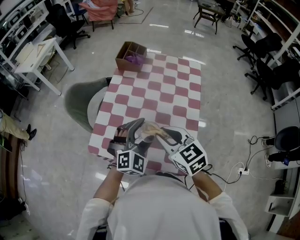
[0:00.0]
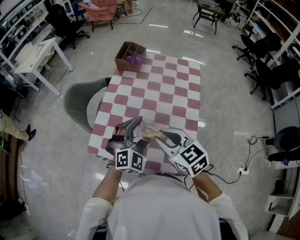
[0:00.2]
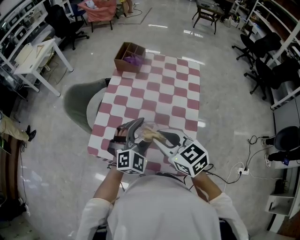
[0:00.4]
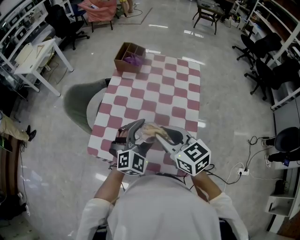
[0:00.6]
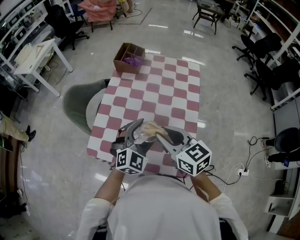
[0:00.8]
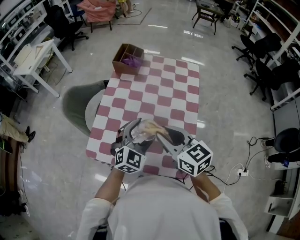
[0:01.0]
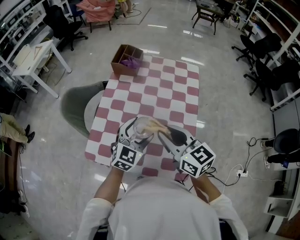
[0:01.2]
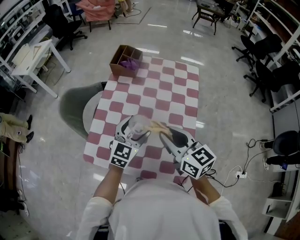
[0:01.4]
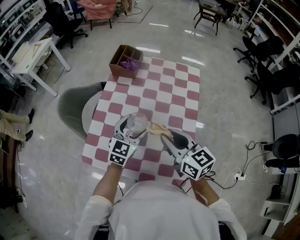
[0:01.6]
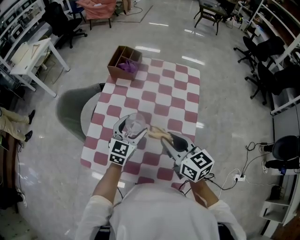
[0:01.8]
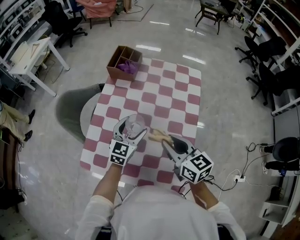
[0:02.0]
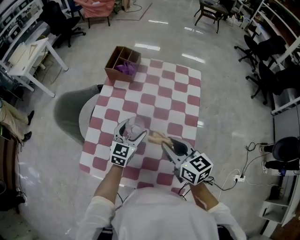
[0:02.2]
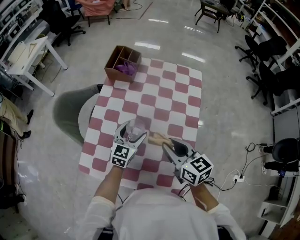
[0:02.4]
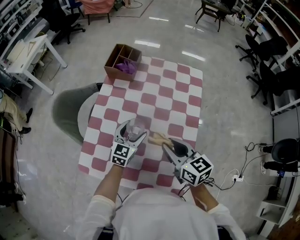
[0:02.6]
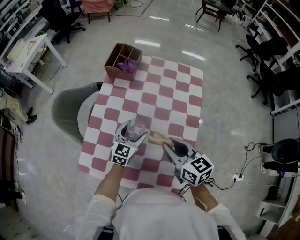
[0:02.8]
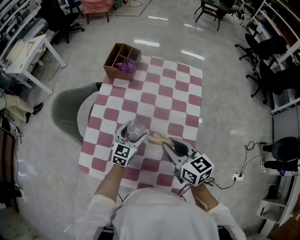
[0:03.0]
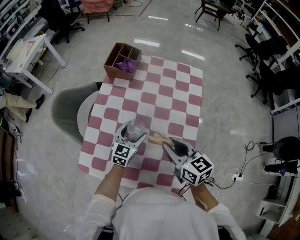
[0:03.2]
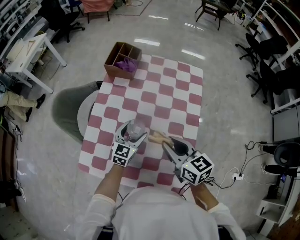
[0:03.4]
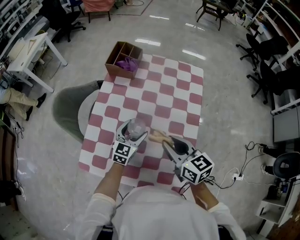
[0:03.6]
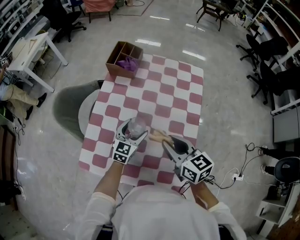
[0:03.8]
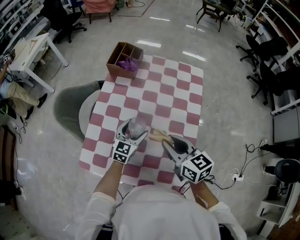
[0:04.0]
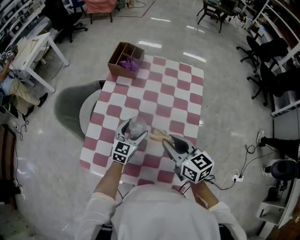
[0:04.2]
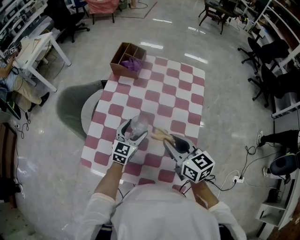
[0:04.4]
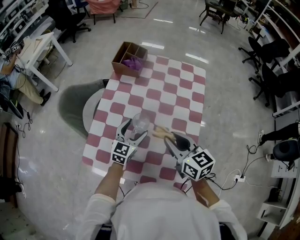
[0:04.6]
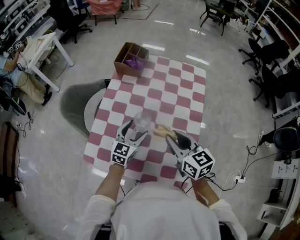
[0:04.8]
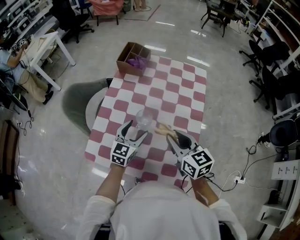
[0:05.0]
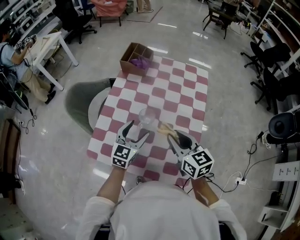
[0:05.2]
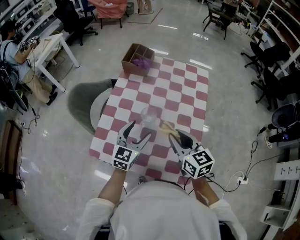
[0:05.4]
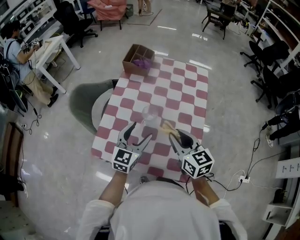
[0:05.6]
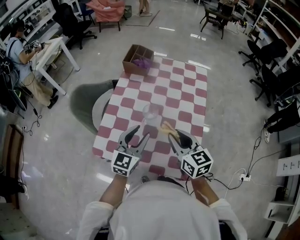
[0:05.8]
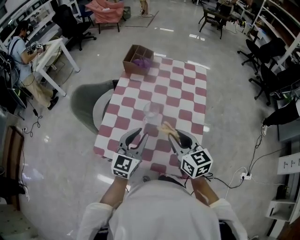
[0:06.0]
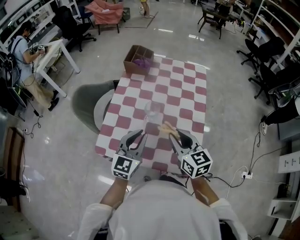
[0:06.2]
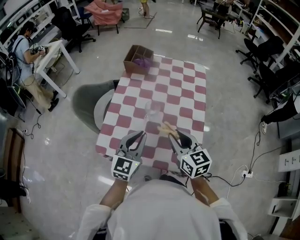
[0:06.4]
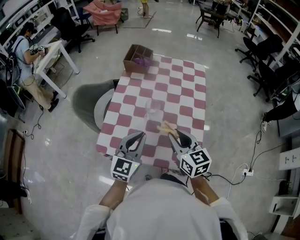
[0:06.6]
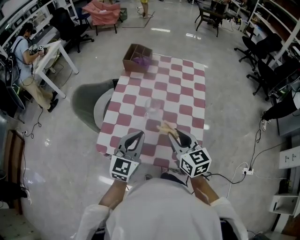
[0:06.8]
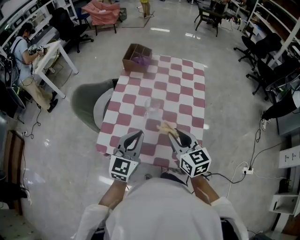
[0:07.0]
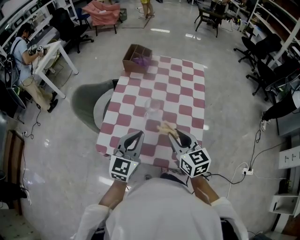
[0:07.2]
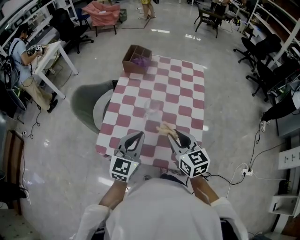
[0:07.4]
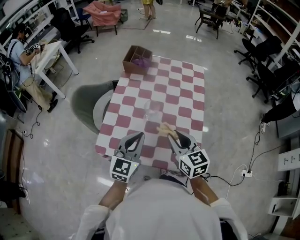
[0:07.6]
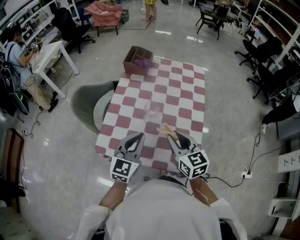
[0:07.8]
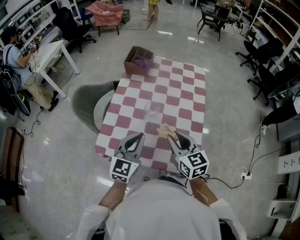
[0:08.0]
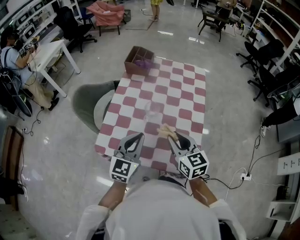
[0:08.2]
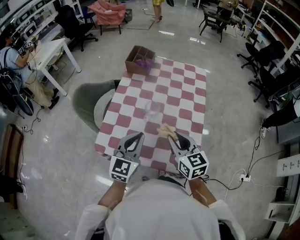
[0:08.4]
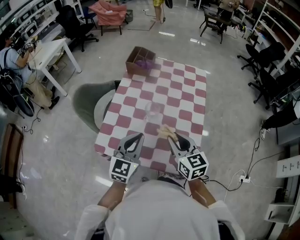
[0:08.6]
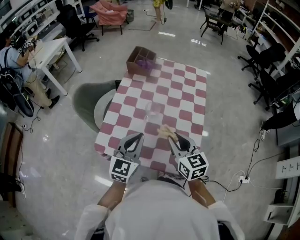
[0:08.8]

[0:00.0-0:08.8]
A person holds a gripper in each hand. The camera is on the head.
0.0 to 1.4 s: The right gripper moves roughly 5 cm, and rotates about 20 degrees, while the left gripper heads forward, covering roughly 10 cm, and changes its angle by approximately 40 degrees.
1.4 to 3.0 s: The left gripper is displaced downward and forward by some 15 cm; the right gripper goes about 10 cm downward.
3.0 to 4.4 s: The grippers stay close to where they were, moving slightly.
4.4 to 5.8 s: The left gripper heads upward and backward, covering roughly 15 cm, and closes up; the right gripper travels backward by approximately 5 cm.
5.8 to 7.4 s: The left gripper travels backward by roughly 5 cm, and closes up.
7.4 to 8.8 s: Neither gripper changes place.

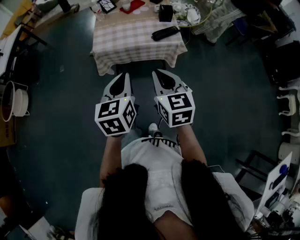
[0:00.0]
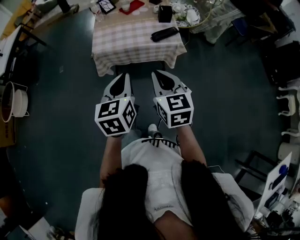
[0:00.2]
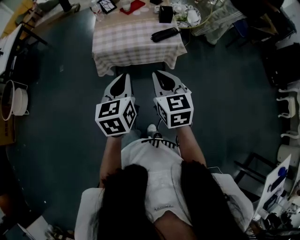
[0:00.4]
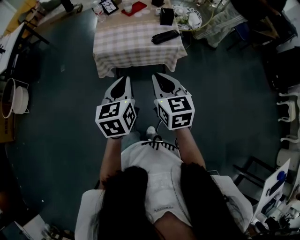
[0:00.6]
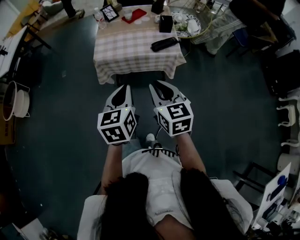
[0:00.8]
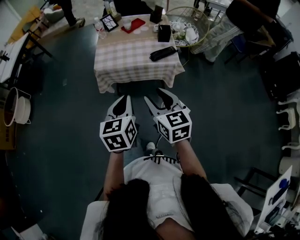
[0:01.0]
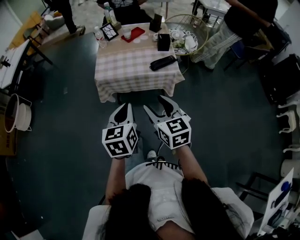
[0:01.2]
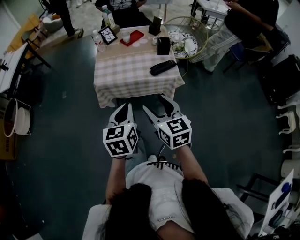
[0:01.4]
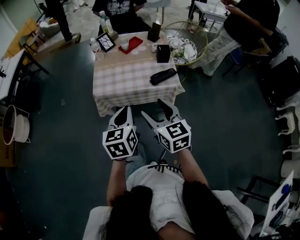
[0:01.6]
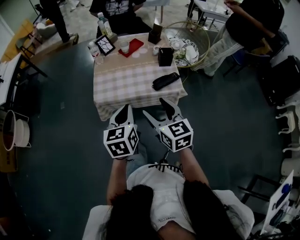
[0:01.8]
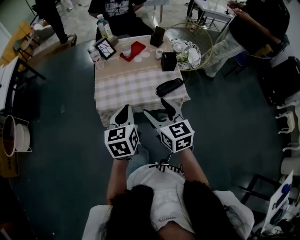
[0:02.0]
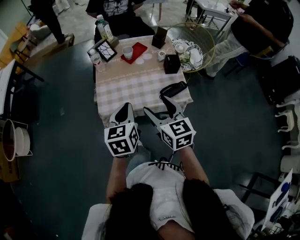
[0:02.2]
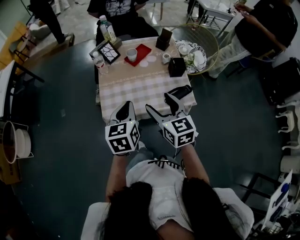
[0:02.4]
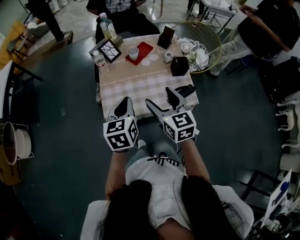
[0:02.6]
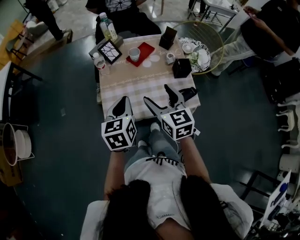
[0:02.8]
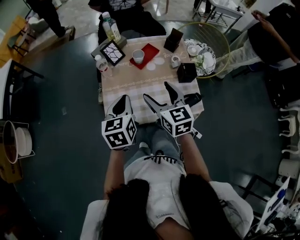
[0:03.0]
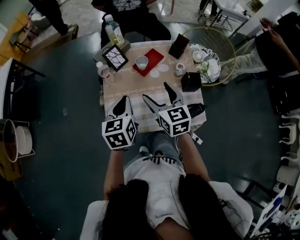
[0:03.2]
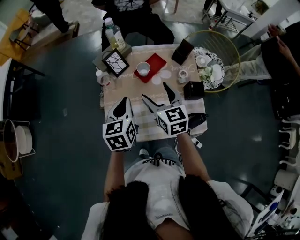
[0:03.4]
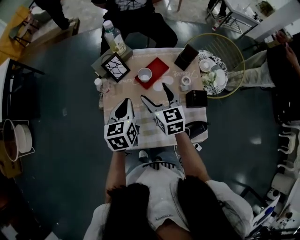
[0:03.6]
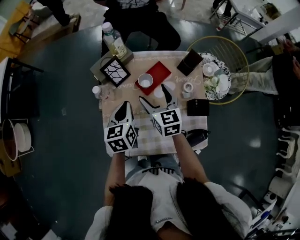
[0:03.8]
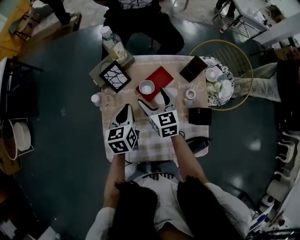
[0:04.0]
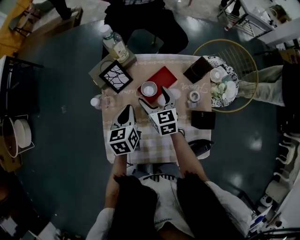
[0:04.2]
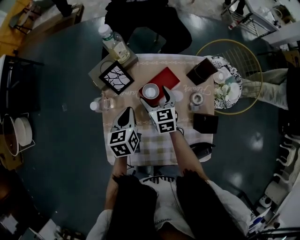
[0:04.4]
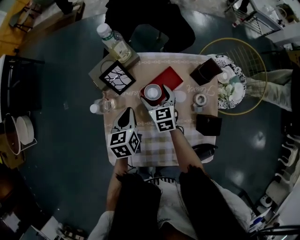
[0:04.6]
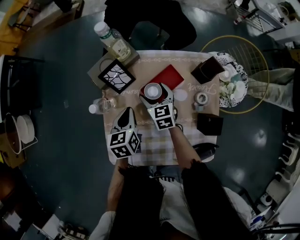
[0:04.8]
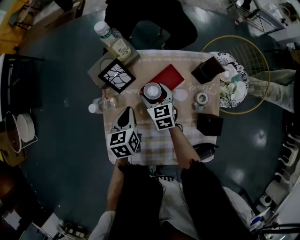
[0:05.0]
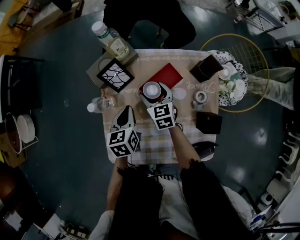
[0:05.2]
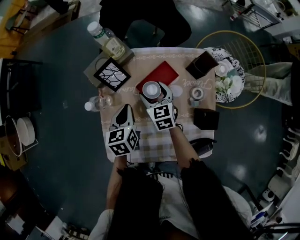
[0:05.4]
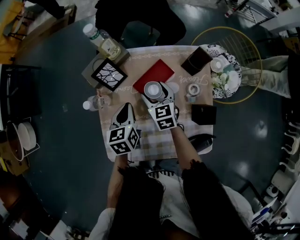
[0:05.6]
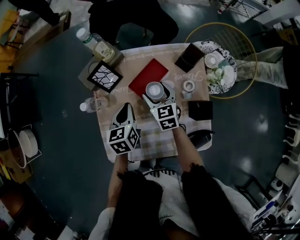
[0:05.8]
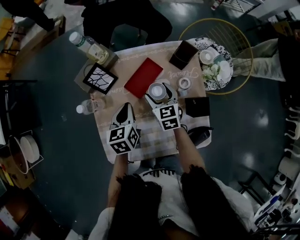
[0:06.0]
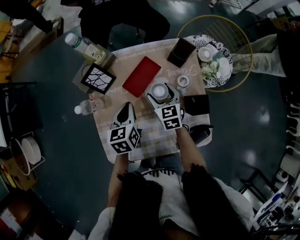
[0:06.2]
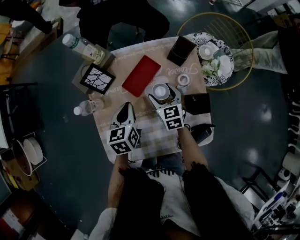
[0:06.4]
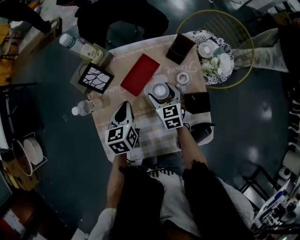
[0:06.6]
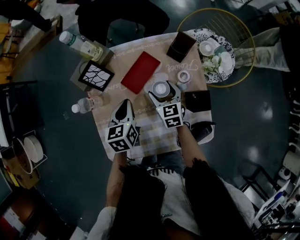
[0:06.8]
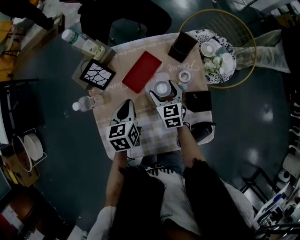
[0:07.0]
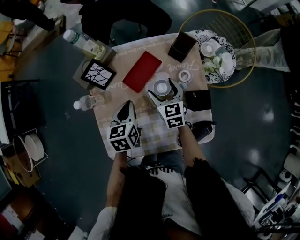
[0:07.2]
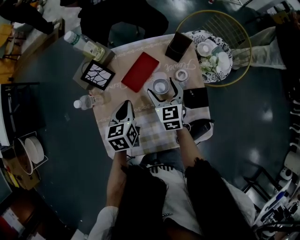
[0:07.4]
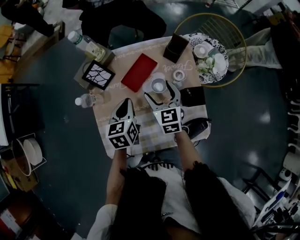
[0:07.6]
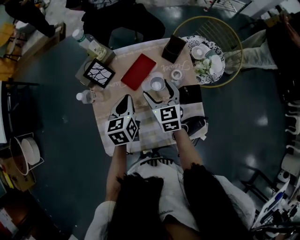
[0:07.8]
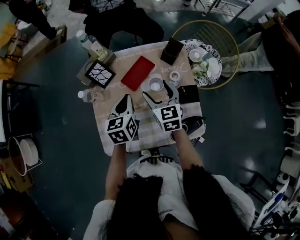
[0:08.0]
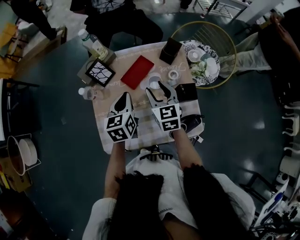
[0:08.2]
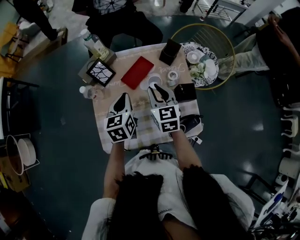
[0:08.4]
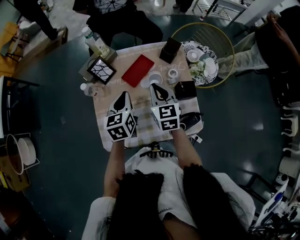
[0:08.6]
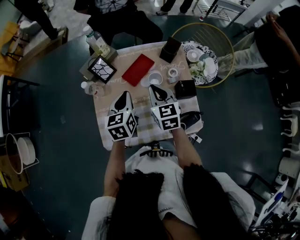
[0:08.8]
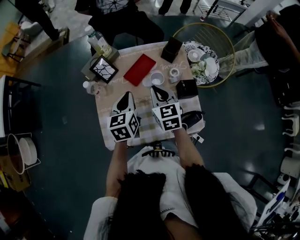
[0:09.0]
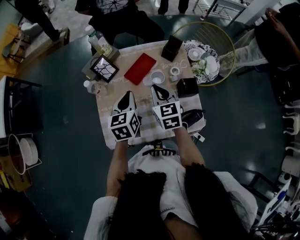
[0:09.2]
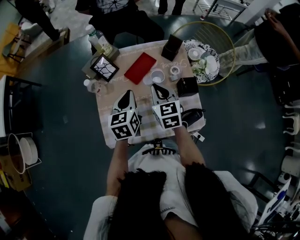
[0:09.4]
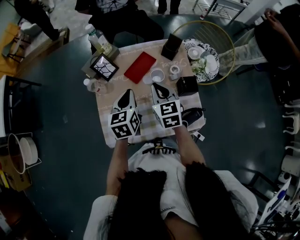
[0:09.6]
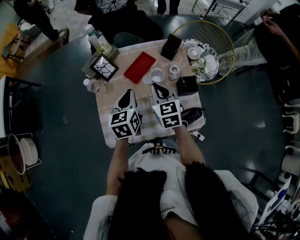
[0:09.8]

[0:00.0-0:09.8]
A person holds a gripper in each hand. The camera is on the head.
0.0 to 1.4 s: The left gripper moves approximately 5 cm. Meanwhile the right gripper opens up.
1.4 to 2.8 s: The two grippers go about 35 cm forward.
2.8 to 4.2 s: Both grippers travel together forward and downward, about 35 cm.
5.6 to 7.0 s: The right gripper goes some 10 cm to the right; the left gripper heads to the right, covering approximately 5 cm.
7.0 to 8.4 s: The right gripper shifts about 15 cm upward, and closes its fingers, while the left gripper is displaced upward by about 10 cm.
8.4 to 9.8 s: The grippers move only a little.

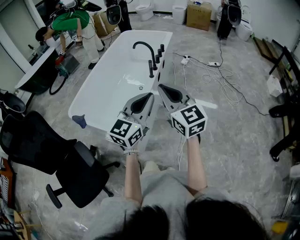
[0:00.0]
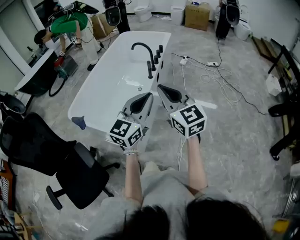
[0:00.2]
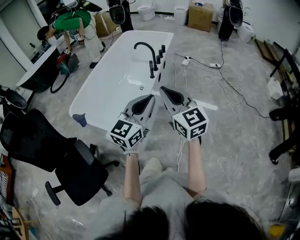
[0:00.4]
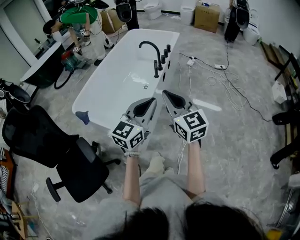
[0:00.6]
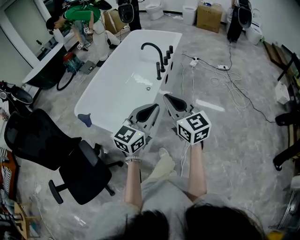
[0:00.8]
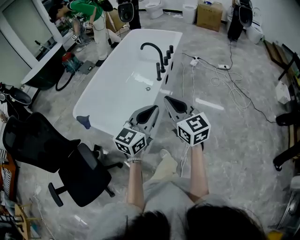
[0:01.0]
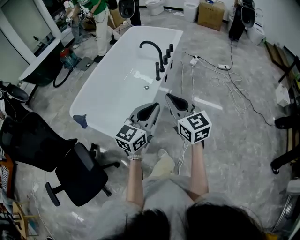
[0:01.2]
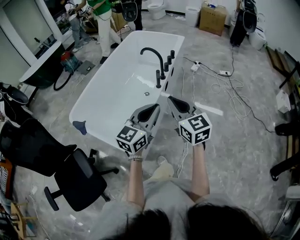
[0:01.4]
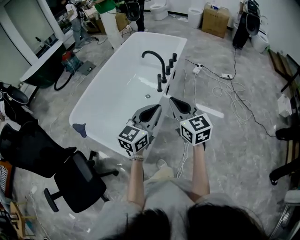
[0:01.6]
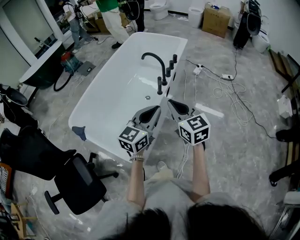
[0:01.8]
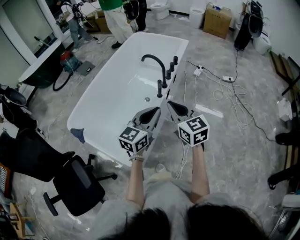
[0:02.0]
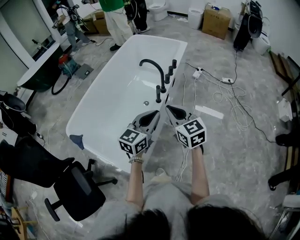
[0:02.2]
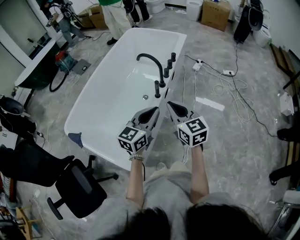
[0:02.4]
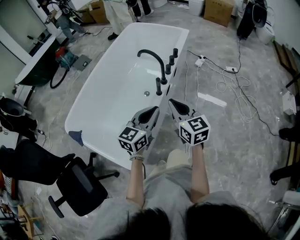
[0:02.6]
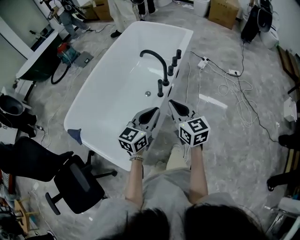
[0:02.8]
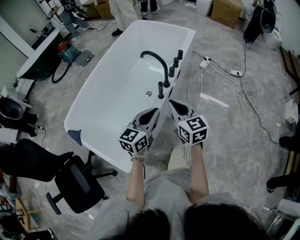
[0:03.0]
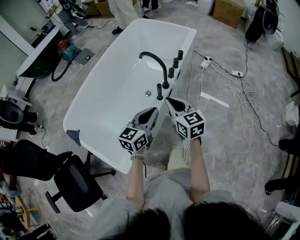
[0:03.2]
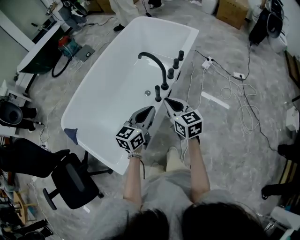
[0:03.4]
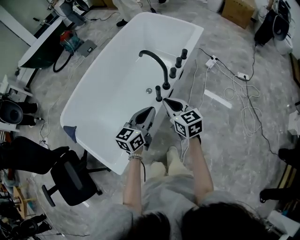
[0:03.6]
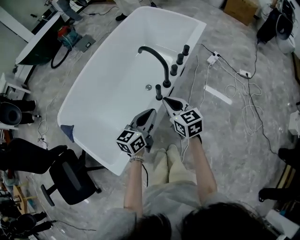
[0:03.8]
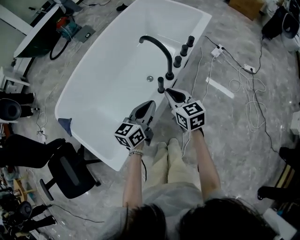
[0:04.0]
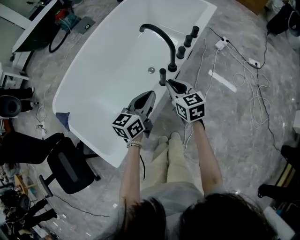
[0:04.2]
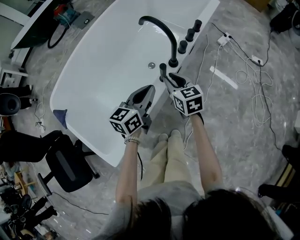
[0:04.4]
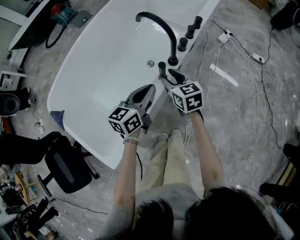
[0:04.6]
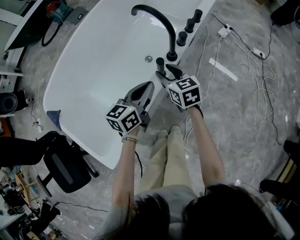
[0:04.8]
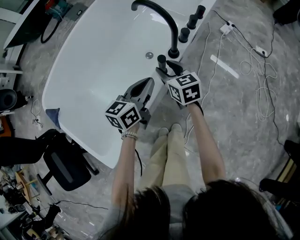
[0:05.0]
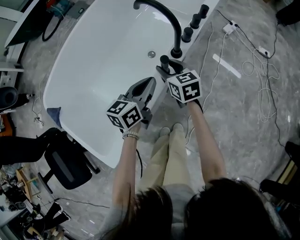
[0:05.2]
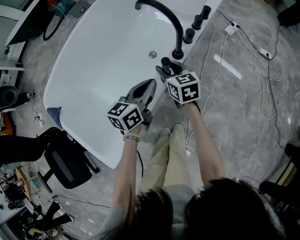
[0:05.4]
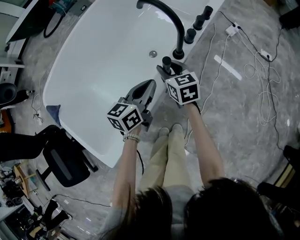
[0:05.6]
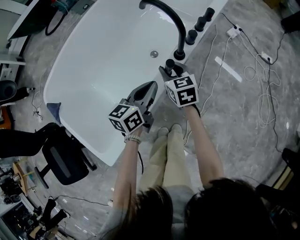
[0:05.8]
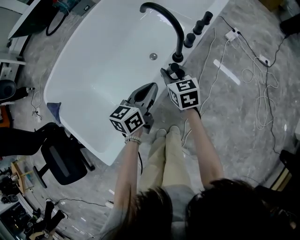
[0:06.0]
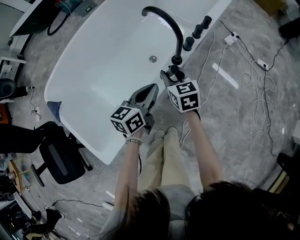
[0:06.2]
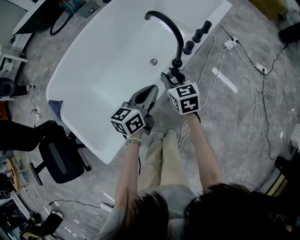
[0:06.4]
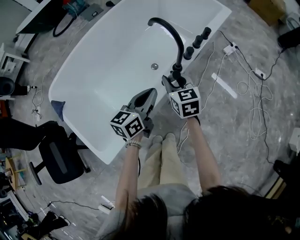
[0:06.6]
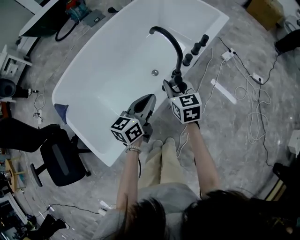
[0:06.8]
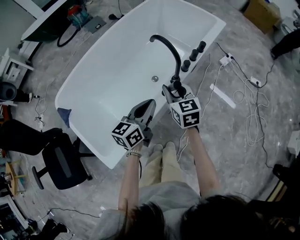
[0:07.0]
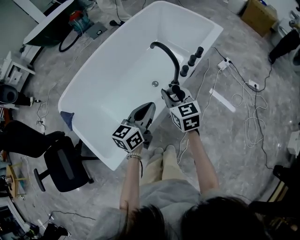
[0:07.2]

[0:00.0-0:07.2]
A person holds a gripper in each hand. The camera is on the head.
0.0 to 1.4 s: Both grippers travel together forward and downward, some 15 cm.
1.4 to 2.8 s: The grippers both shift forward and downward by roughly 20 cm.
2.8 to 4.4 s: The grippers both shift downward and forward by roughly 25 cm. The left gripper rotates approximately 20 degrees, while the right gripper rotates approximately 20 degrees.
4.4 to 5.8 s: The grippers both shift downward by some 5 cm.
5.8 to 7.2 s: The grippers both shift upward by about 20 cm.
